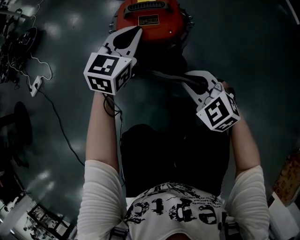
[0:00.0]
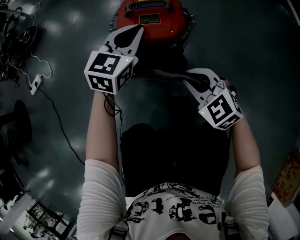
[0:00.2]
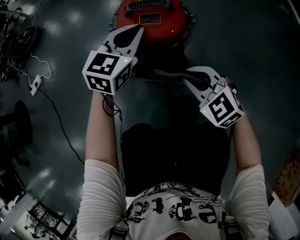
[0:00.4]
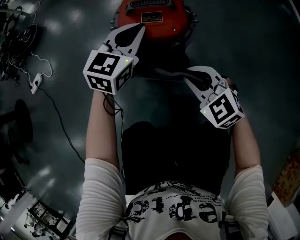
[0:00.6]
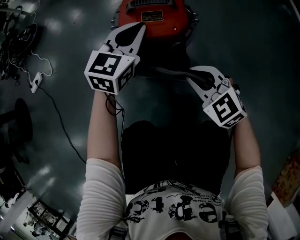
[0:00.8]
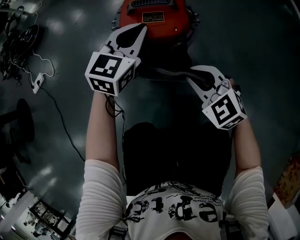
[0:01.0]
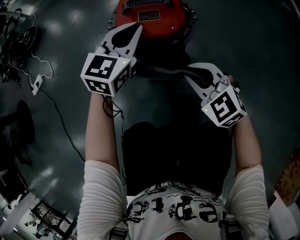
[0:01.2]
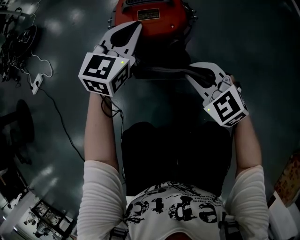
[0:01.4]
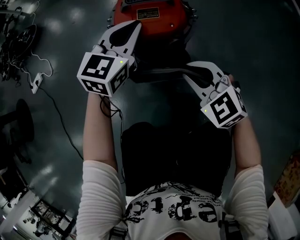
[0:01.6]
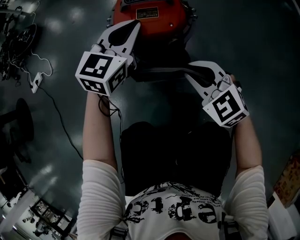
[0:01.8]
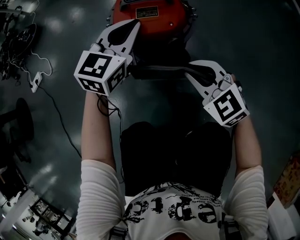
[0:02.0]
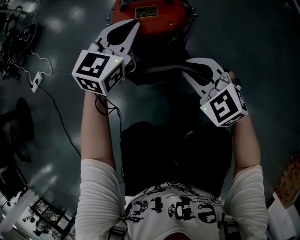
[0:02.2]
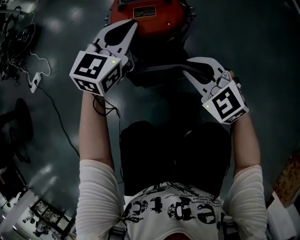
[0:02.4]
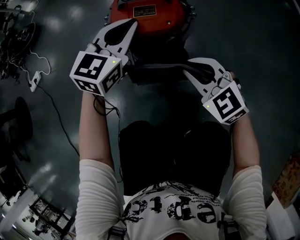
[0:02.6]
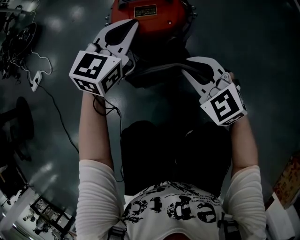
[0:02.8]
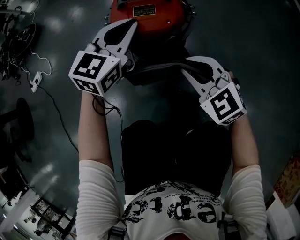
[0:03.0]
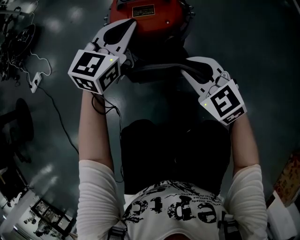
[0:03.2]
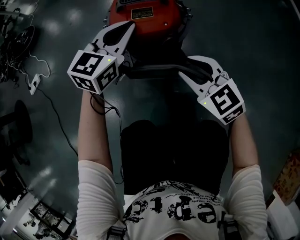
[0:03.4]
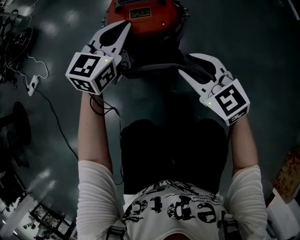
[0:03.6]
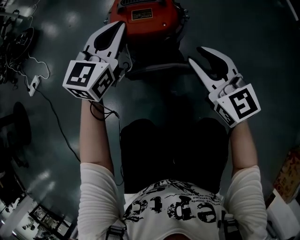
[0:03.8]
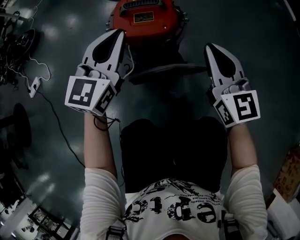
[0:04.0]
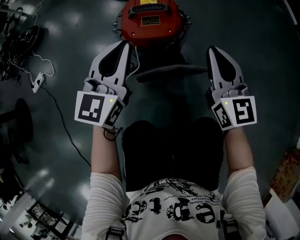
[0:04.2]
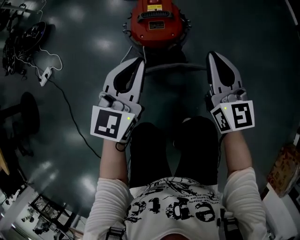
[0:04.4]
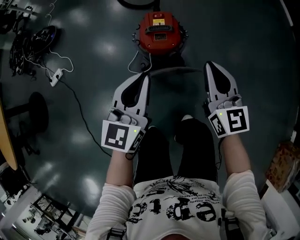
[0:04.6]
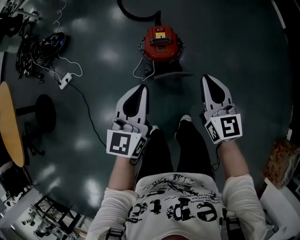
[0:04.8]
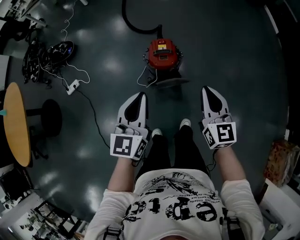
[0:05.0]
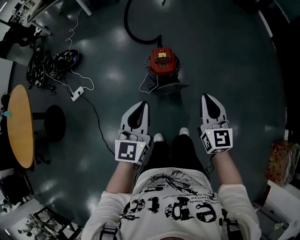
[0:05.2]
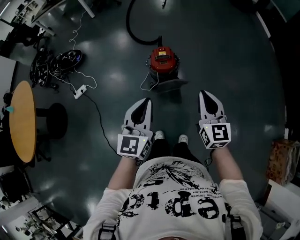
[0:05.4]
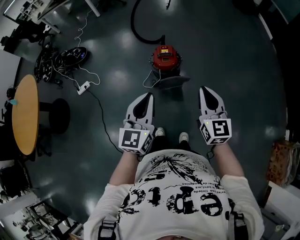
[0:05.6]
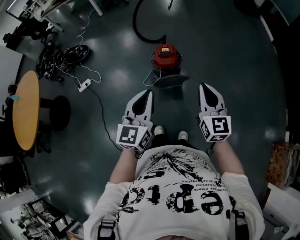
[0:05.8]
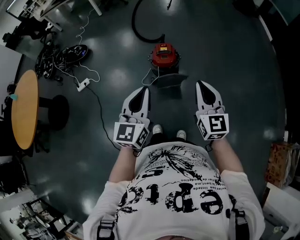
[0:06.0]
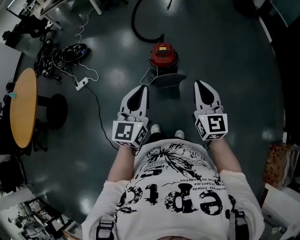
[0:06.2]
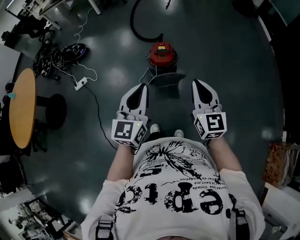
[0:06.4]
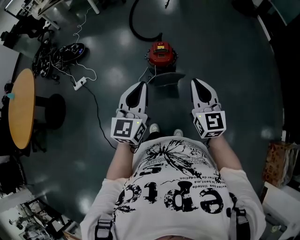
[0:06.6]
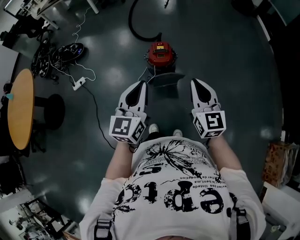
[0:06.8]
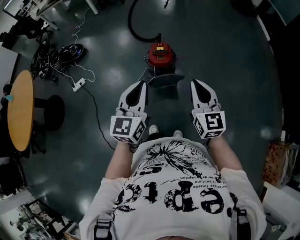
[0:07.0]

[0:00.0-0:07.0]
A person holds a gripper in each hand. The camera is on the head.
0:00.0 to 0:01.4: There are only small adjustments of the grippers.
0:01.4 to 0:02.8: Both grippers stay about where they are.
0:02.8 to 0:04.2: The left gripper moves upward and backward, roughly 15 cm; the right gripper moves upward and to the right, about 15 cm, and swivels approximately 50 degrees.
0:04.2 to 0:05.6: Both grippers travel together upward and backward, roughly 60 cm.
0:05.6 to 0:07.0: The grippers move only a little.

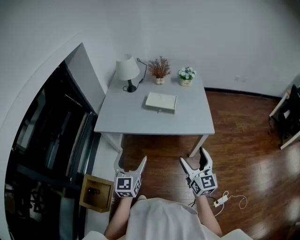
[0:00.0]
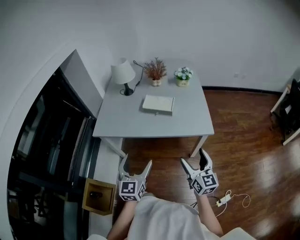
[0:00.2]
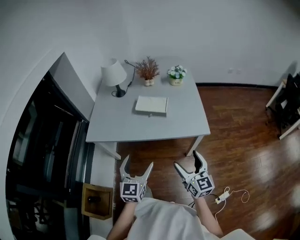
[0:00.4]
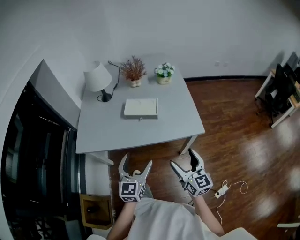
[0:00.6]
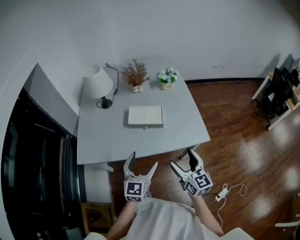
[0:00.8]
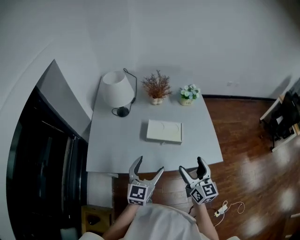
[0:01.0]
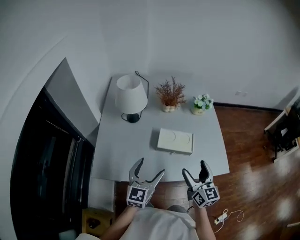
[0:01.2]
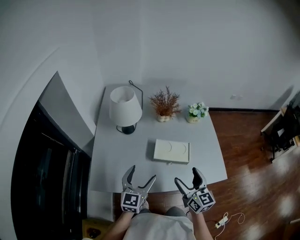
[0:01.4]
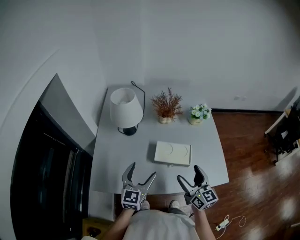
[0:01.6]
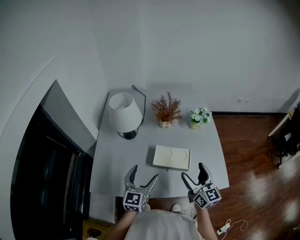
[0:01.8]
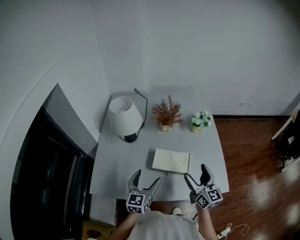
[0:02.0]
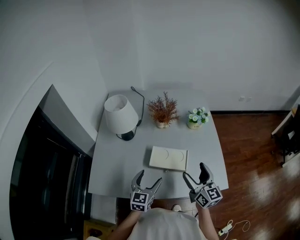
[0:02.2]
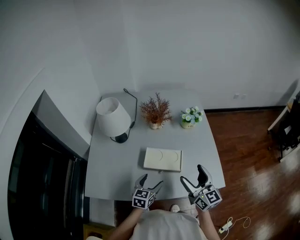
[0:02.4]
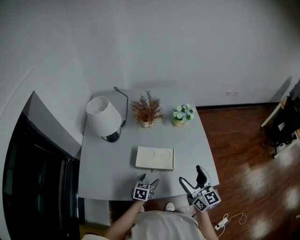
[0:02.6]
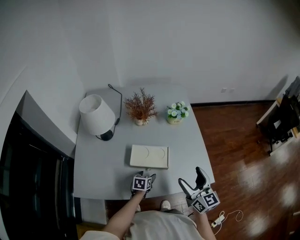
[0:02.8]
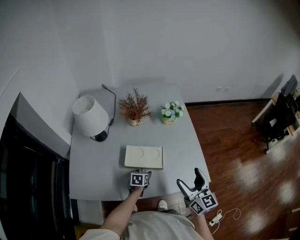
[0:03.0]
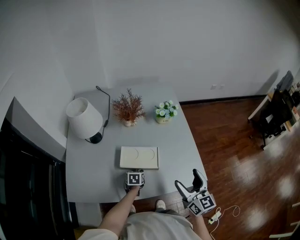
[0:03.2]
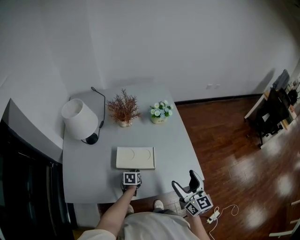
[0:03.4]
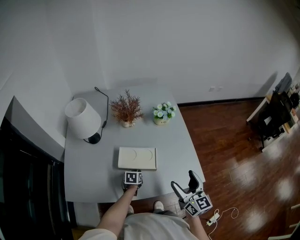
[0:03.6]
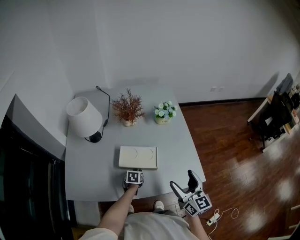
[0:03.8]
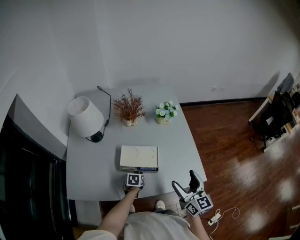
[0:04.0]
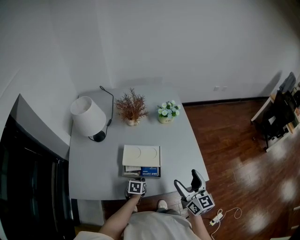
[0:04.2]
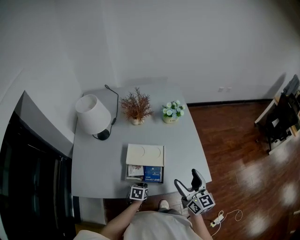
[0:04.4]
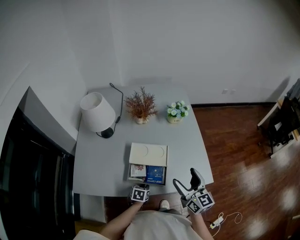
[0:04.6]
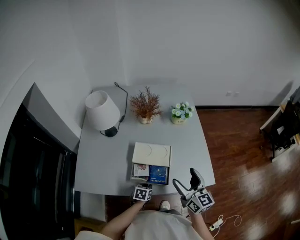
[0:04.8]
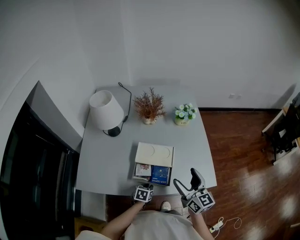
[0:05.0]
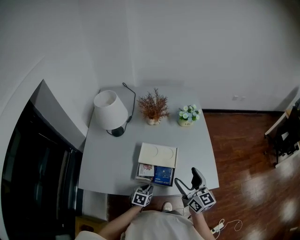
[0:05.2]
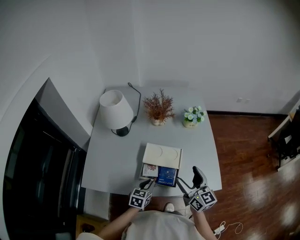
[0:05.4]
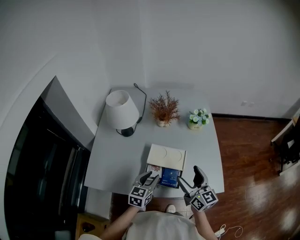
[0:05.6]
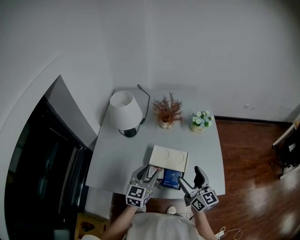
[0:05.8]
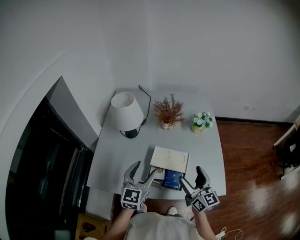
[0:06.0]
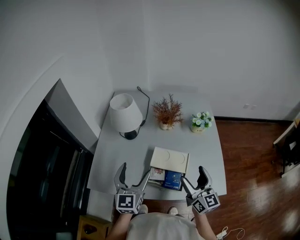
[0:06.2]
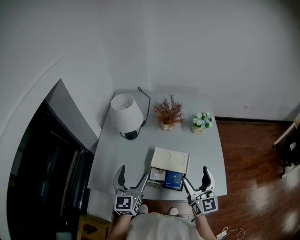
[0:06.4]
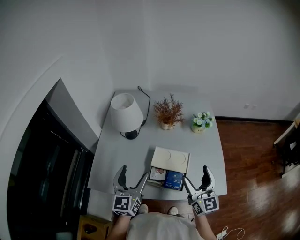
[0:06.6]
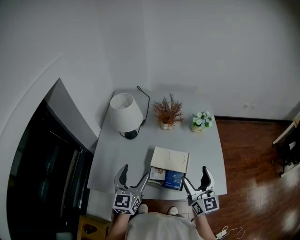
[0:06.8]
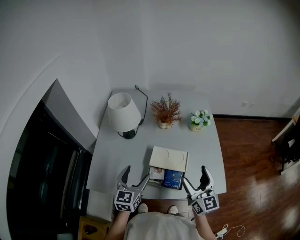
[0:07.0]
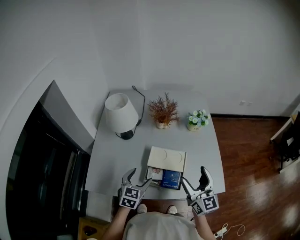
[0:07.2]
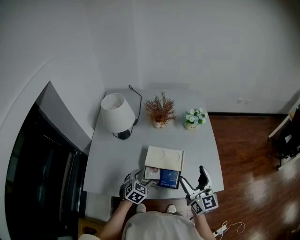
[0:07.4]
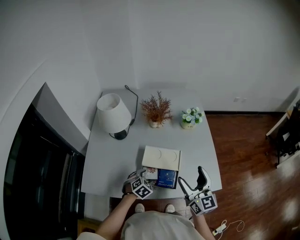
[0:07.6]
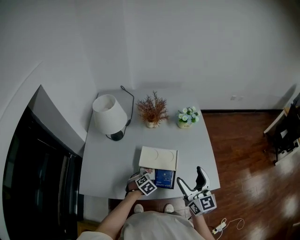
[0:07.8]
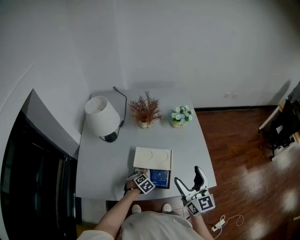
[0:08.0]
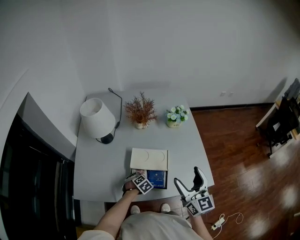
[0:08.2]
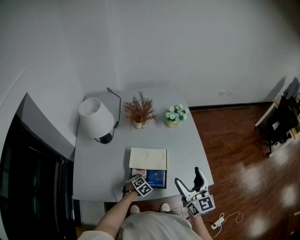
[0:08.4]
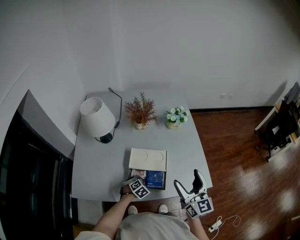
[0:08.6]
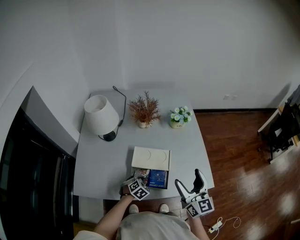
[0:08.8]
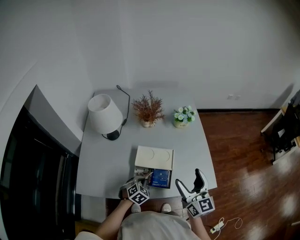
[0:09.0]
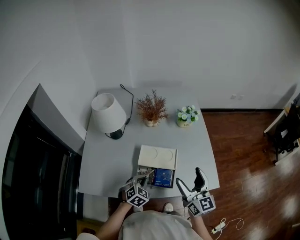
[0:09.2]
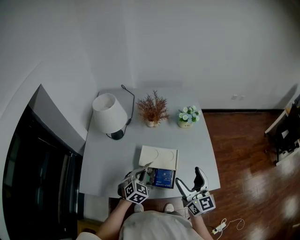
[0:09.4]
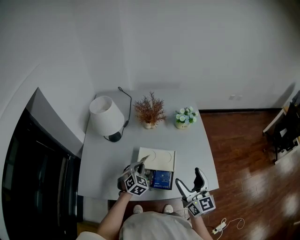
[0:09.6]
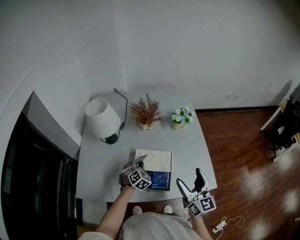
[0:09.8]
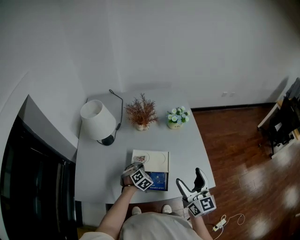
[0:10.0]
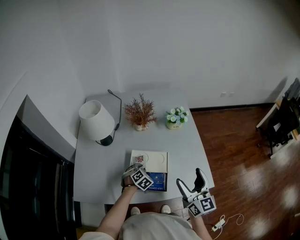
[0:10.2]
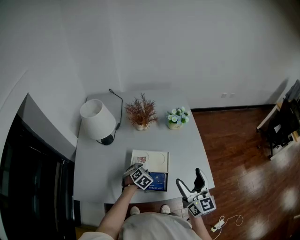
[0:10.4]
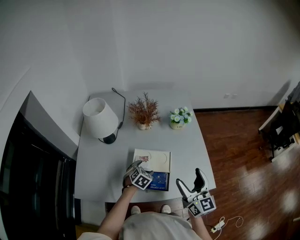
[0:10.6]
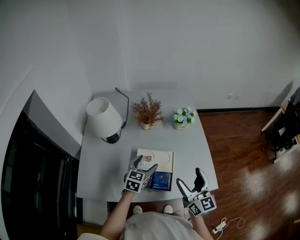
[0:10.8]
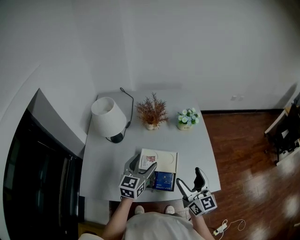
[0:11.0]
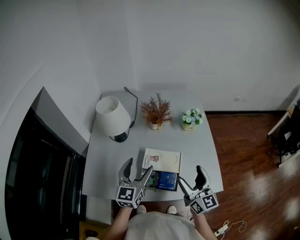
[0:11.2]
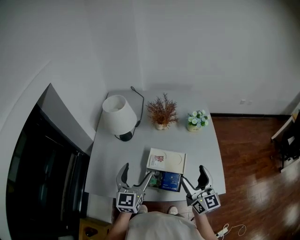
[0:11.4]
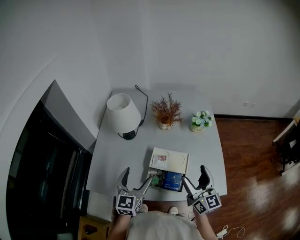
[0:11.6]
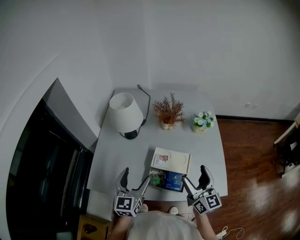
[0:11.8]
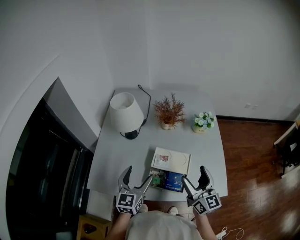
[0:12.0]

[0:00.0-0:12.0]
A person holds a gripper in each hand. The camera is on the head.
0:00.0 to 0:01.6: Both grippers move forward, about 35 cm.
0:01.6 to 0:03.0: The right gripper shifts about 15 cm to the right. The left gripper is displaced downward and to the right by roughly 30 cm, and tilts its fingers roughly 40 degrees downward.
0:03.0 to 0:04.4: The left gripper is displaced backward by about 10 cm, and closes.
0:04.4 to 0:06.0: The left gripper goes approximately 30 cm upward, points its fingers about 50 degrees further upward, and opens up; the right gripper shifts about 10 cm to the left.
0:06.0 to 0:07.6: The left gripper is displaced downward by roughly 25 cm, and tilts its fingers about 50 degrees downward.
0:07.6 to 0:09.0: The left gripper reaches some 10 cm downward, then returns, and closes up.
0:09.0 to 0:10.4: The left gripper shifts about 10 cm forward, and opens up.
0:10.4 to 0:12.0: The left gripper heads upward, to the left and backward, covering roughly 25 cm, points its fingers approximately 50 degrees further upward, and opens up; the right gripper is displaced to the left by some 10 cm.

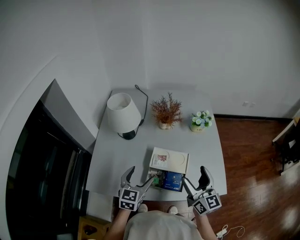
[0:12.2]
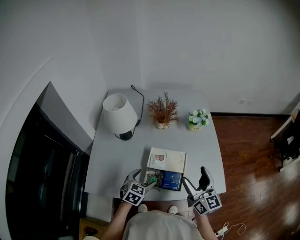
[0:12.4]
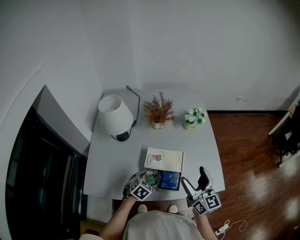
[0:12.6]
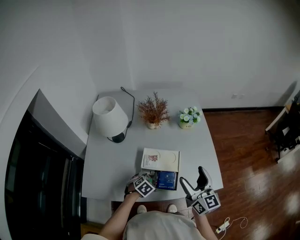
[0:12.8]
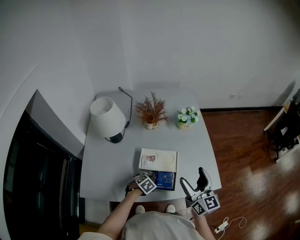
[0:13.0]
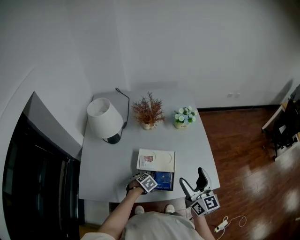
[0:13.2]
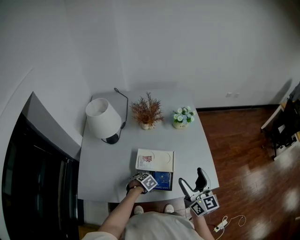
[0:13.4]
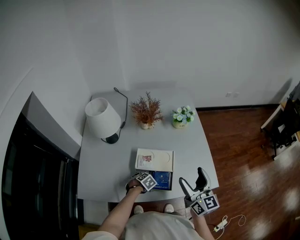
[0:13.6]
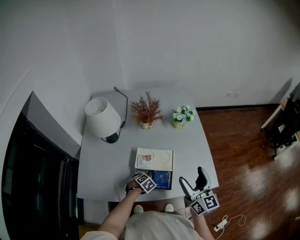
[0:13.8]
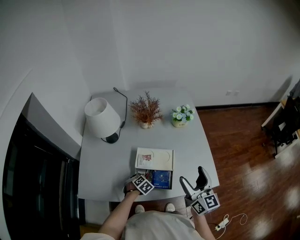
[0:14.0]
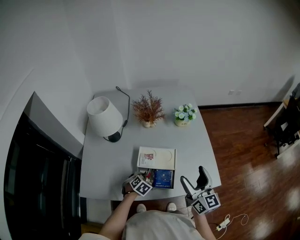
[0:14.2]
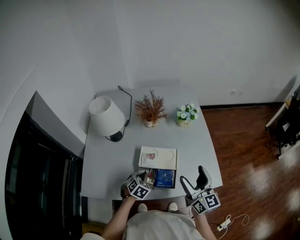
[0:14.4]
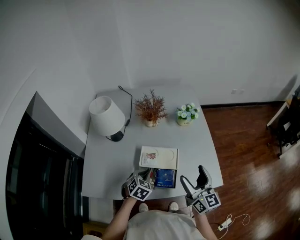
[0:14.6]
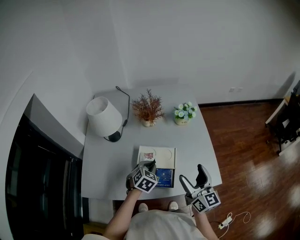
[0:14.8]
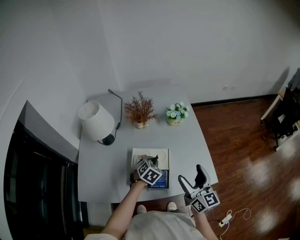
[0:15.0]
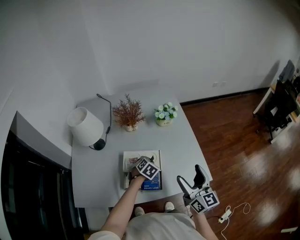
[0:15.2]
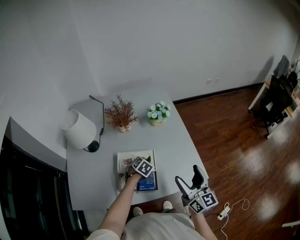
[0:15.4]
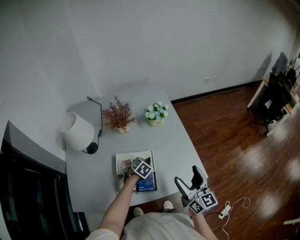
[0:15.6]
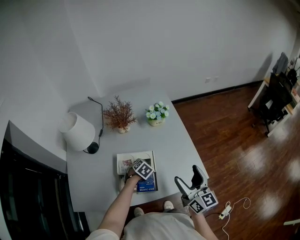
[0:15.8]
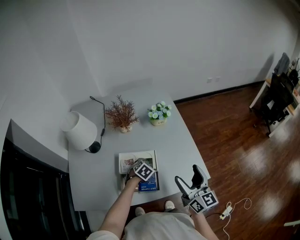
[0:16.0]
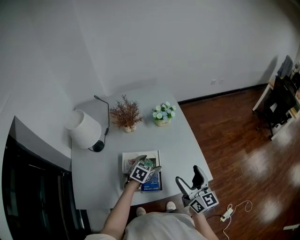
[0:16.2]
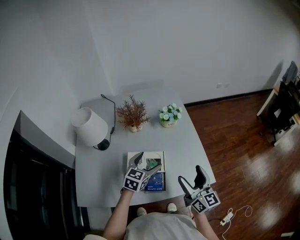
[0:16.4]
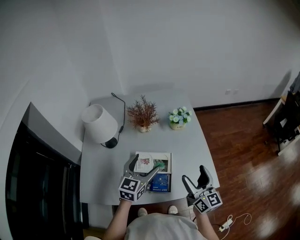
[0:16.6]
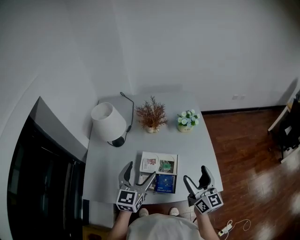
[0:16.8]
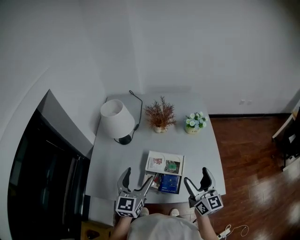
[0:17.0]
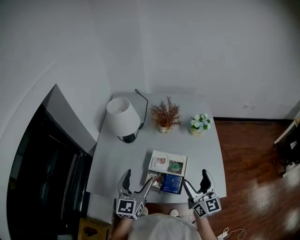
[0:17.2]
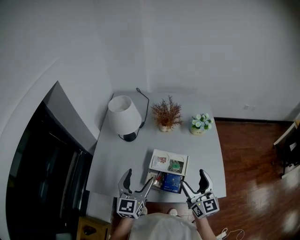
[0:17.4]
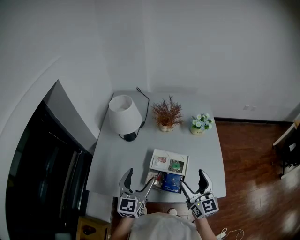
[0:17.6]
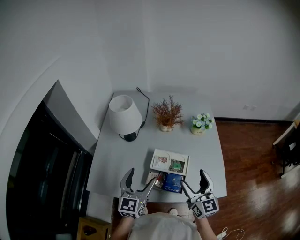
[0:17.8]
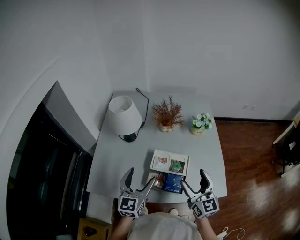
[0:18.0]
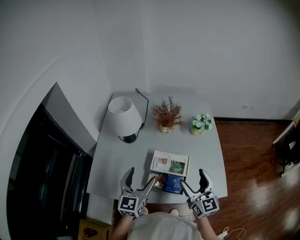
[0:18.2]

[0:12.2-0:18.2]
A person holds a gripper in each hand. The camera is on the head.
0:12.2 to 0:13.8: The left gripper moves downward, approximately 25 cm, points its fingers roughly 60 degrees further downward, and closes up; the right gripper changes place by approximately 5 cm.
0:13.8 to 0:15.2: The left gripper moves approximately 20 cm; the right gripper changes place by roughly 5 cm.
0:15.2 to 0:16.6: The left gripper heads upward, covering some 20 cm, angles its fingers upward, by roughly 50 degrees, and opens.
0:16.6 to 0:18.2: The left gripper shifts approximately 15 cm to the left and backward, and rotates about 20 degrees, while the right gripper moves to the left, some 10 cm.
